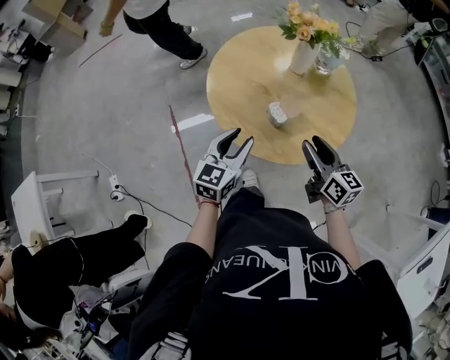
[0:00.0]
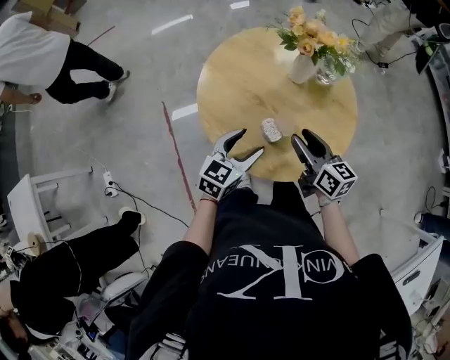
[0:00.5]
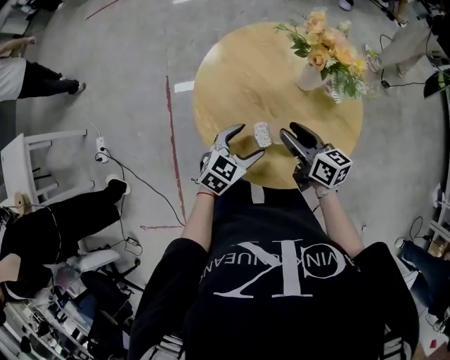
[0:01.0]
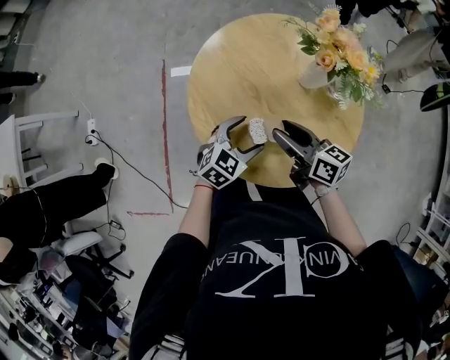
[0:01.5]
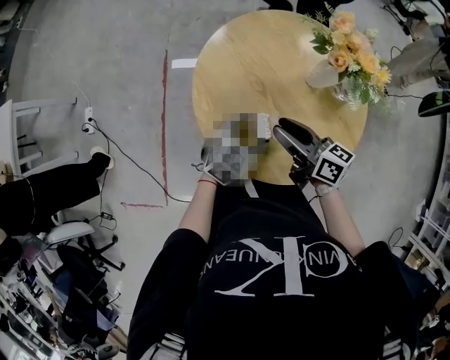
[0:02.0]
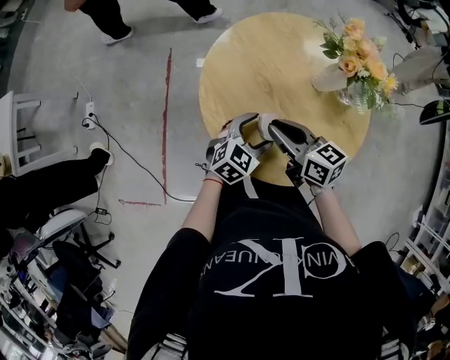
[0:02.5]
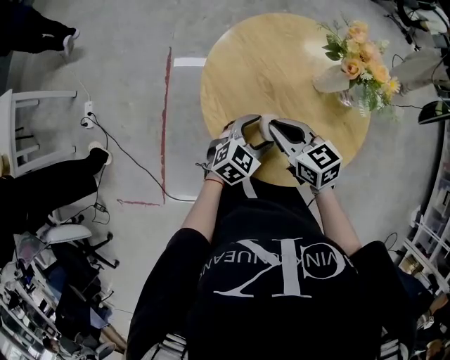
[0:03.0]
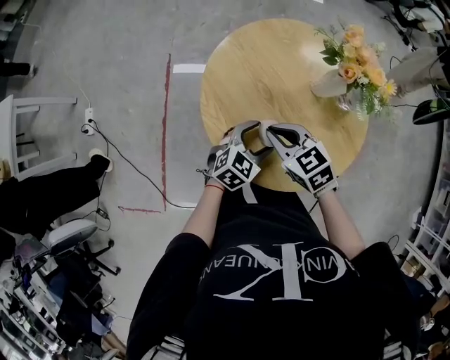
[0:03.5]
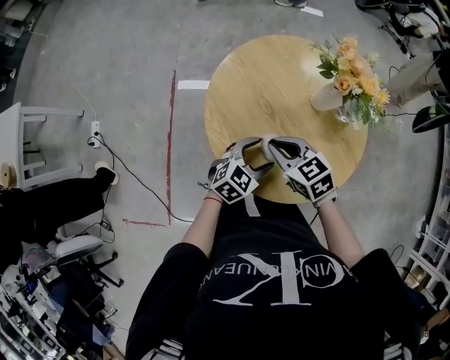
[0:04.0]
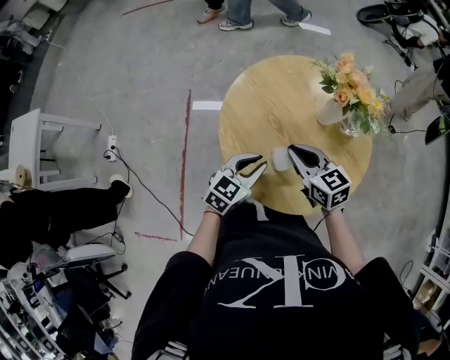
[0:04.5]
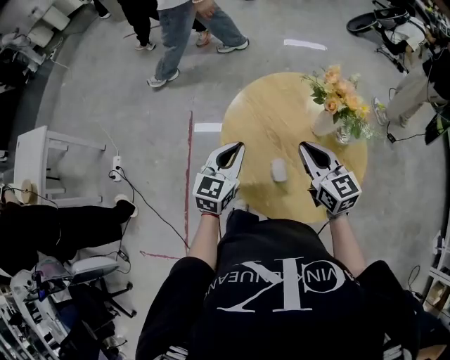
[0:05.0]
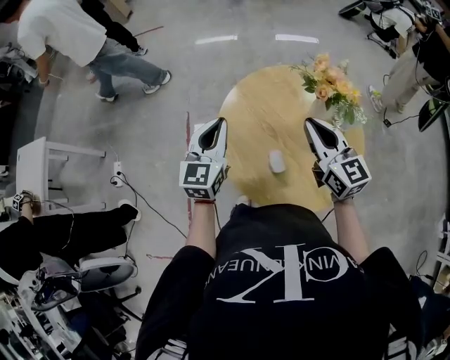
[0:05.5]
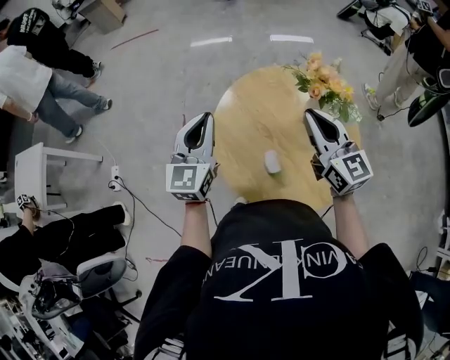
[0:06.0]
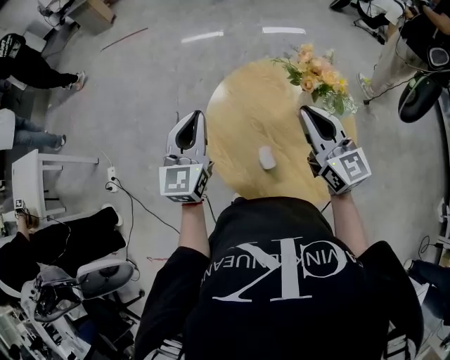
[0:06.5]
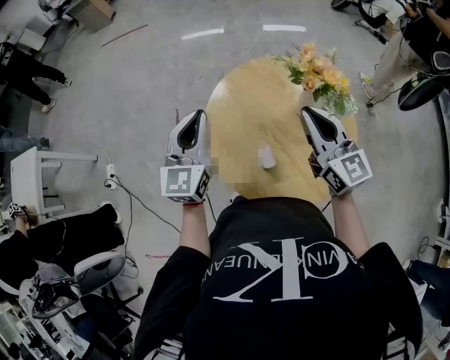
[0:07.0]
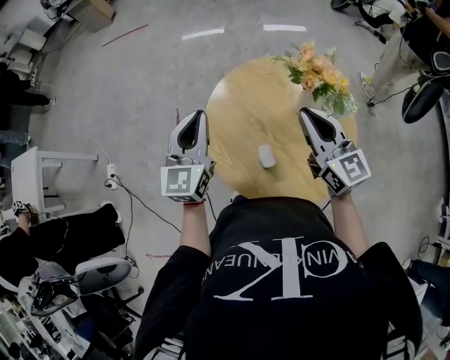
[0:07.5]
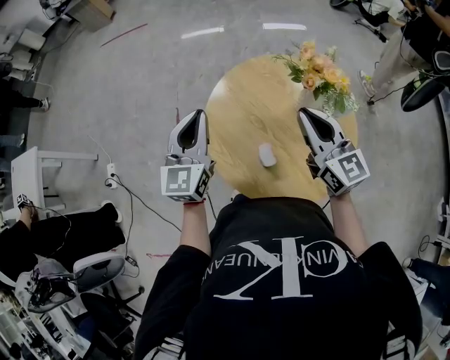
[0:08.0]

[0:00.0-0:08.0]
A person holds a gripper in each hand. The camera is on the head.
0:00.0 to 0:02.0: The right gripper heads forward, covering approximately 15 cm, and rotates approximately 40 degrees; the left gripper heads to the right, downward and forward, covering about 20 cm, and opens its fingers.
0:02.0 to 0:04.0: The right gripper heads to the left, covering approximately 5 cm, points its fingers about 30 degrees further downward, and closes.
0:04.0 to 0:06.0: The left gripper heads upward, to the left and forward, covering roughly 30 cm, angles its fingers upward, by some 30 degrees, and closes up; the right gripper travels upward and to the right by roughly 20 cm, and angles its fingers upward, by approximately 40 degrees.
0:06.0 to 0:08.0: The grippers make only small movements.

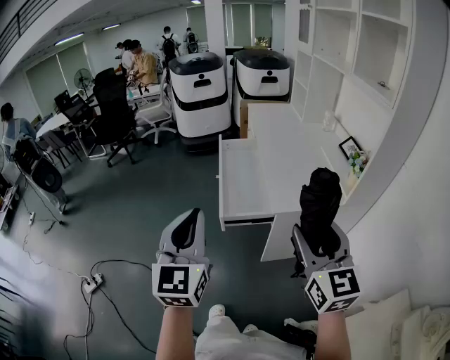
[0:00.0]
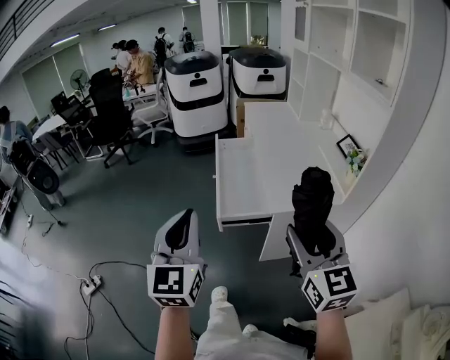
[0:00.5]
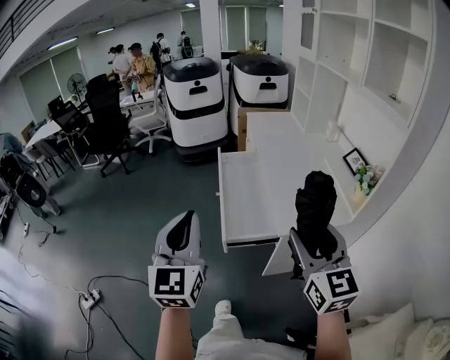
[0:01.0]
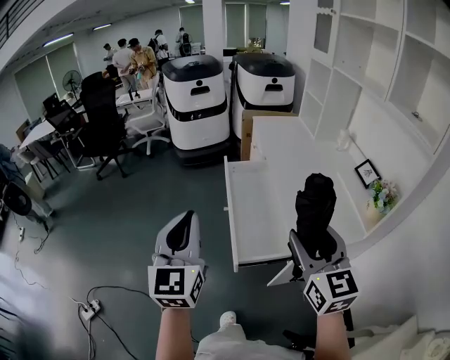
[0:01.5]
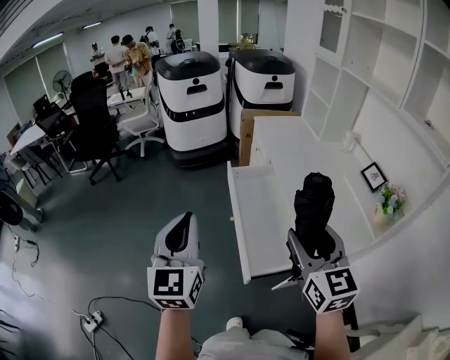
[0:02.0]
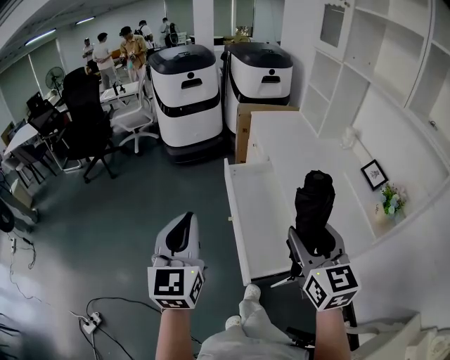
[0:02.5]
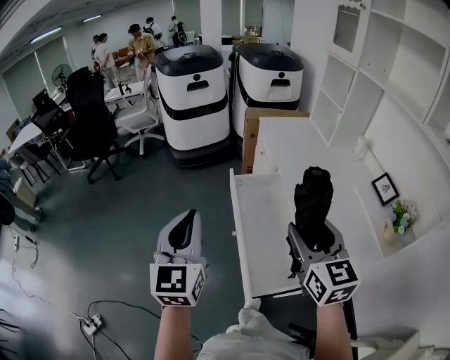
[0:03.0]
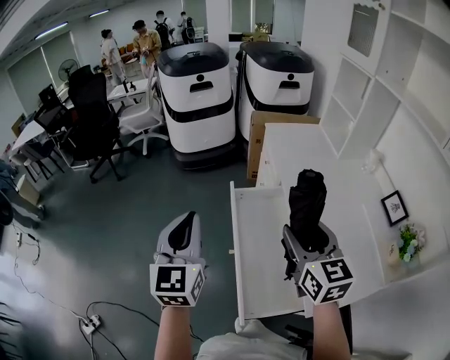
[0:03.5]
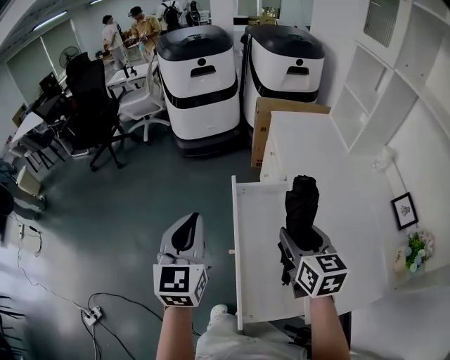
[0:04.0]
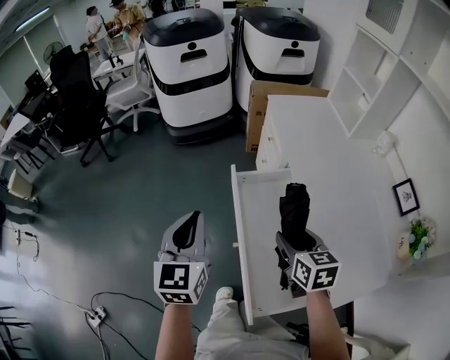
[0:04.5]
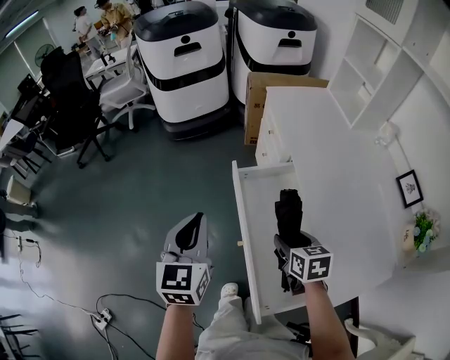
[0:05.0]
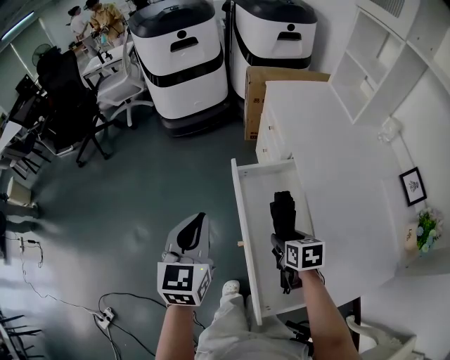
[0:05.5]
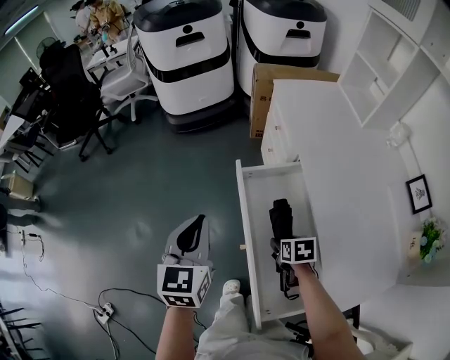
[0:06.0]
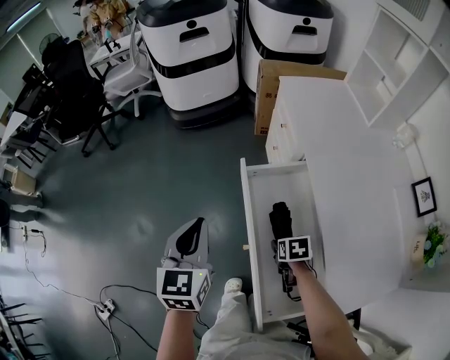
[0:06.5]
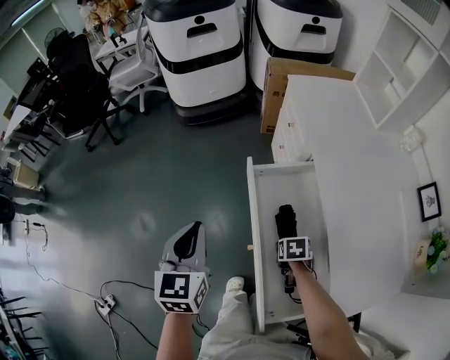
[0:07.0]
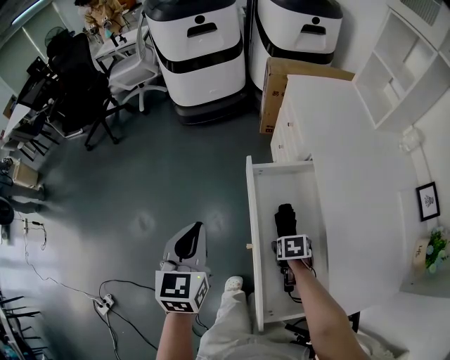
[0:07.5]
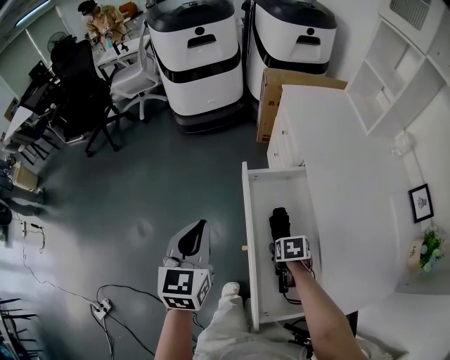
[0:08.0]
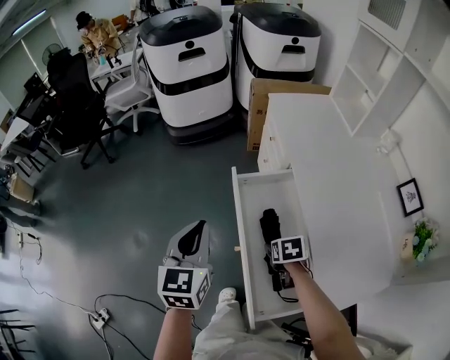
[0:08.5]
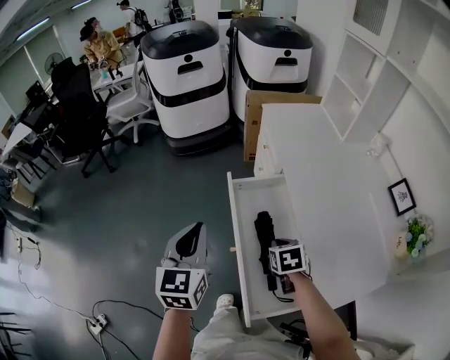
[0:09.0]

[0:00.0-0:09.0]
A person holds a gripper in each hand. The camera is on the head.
0:00.0 to 0:02.0: Both grippers travel together forward and to the left, some 30 cm.
0:02.0 to 0:04.5: Both grippers move forward and downward, approximately 30 cm. The right gripper turns by roughly 30 degrees.
0:04.5 to 0:07.0: The right gripper shifts some 25 cm downward, and points its fingers some 40 degrees further downward. The left gripper heads downward, covering about 5 cm.
0:07.0 to 0:09.0: The left gripper shifts by approximately 10 cm, while the right gripper is displaced upward by roughly 15 cm, changes its angle by roughly 20 degrees, and closes its fingers.

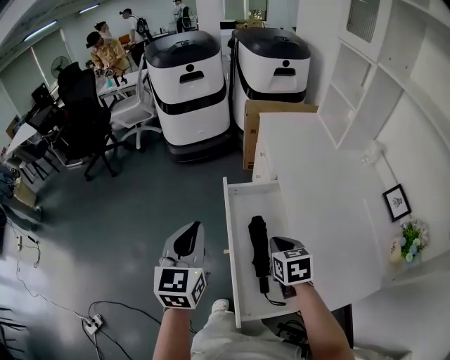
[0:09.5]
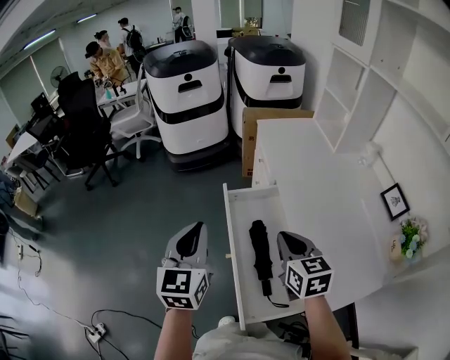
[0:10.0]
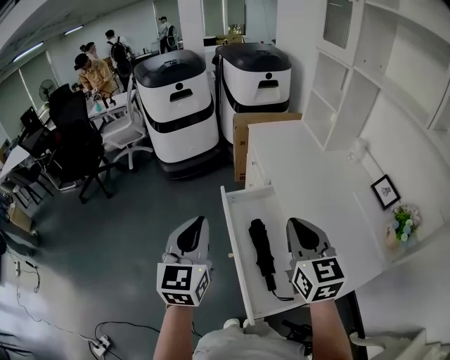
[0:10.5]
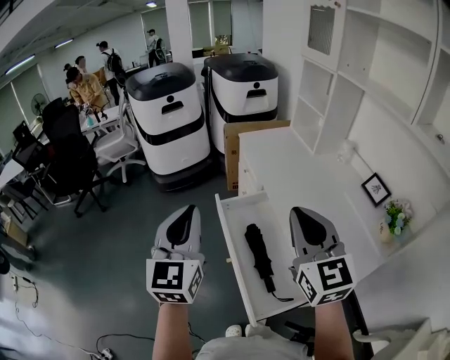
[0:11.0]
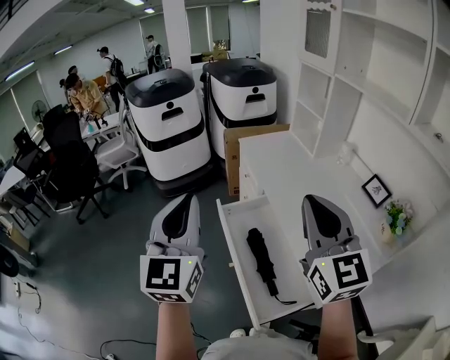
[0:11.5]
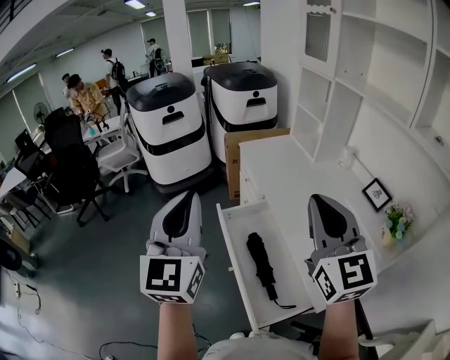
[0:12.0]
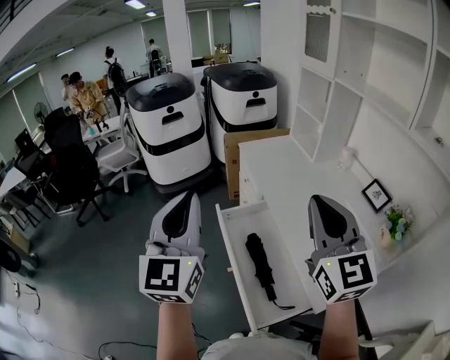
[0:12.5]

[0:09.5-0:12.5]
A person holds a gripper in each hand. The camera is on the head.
0:09.5 to 0:11.0: The right gripper is displaced upward by approximately 25 cm, and points its fingers roughly 40 degrees further upward. The left gripper shifts roughly 10 cm upward.
0:11.0 to 0:12.5: The two grippers go approximately 5 cm upward.

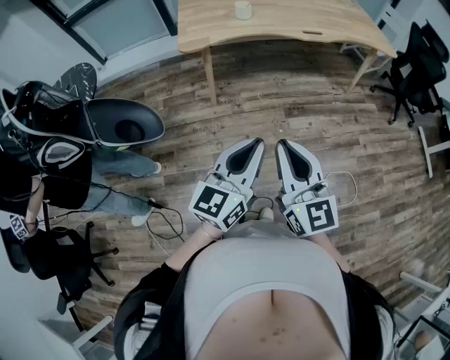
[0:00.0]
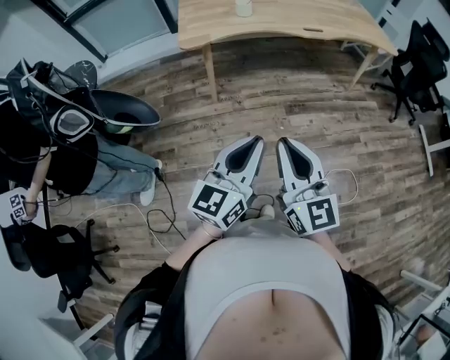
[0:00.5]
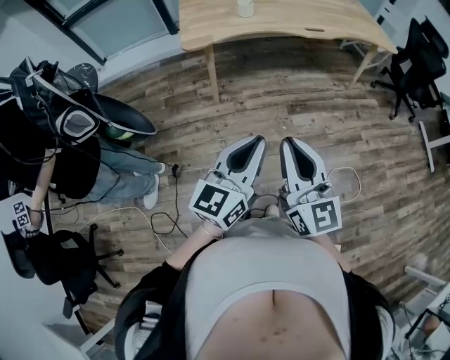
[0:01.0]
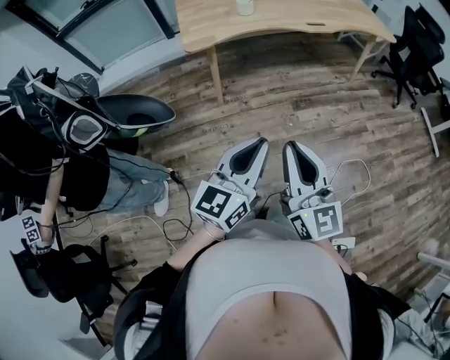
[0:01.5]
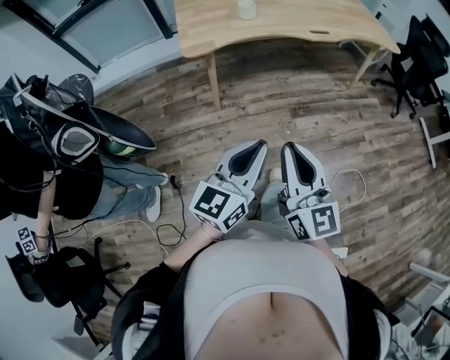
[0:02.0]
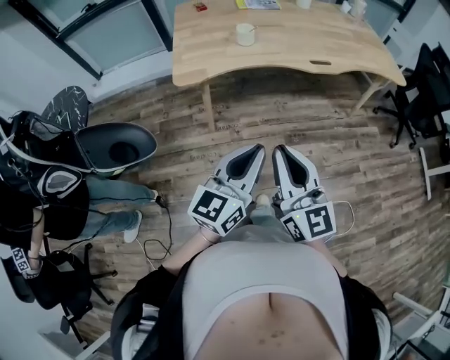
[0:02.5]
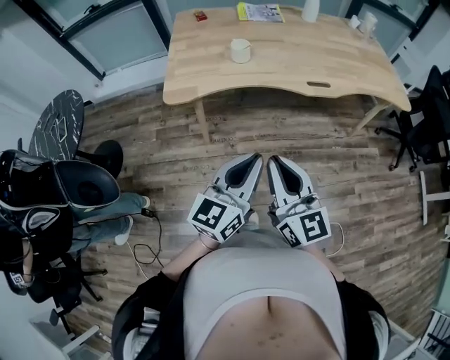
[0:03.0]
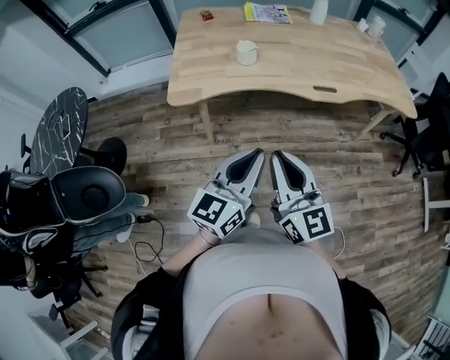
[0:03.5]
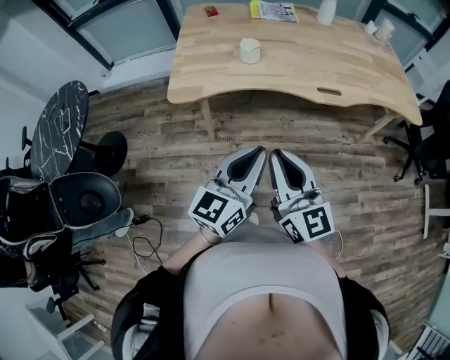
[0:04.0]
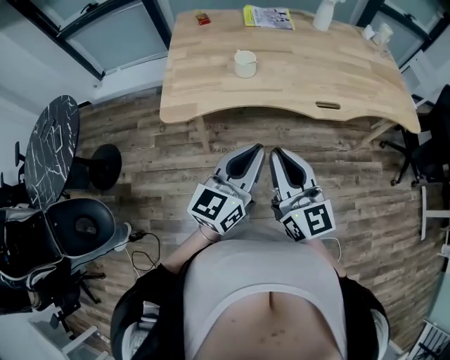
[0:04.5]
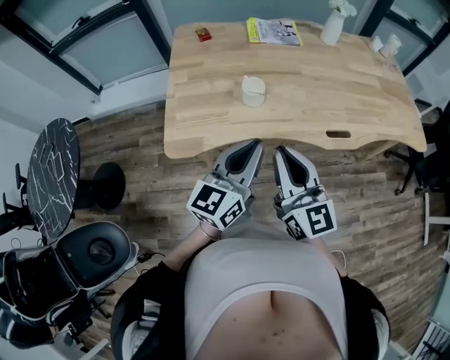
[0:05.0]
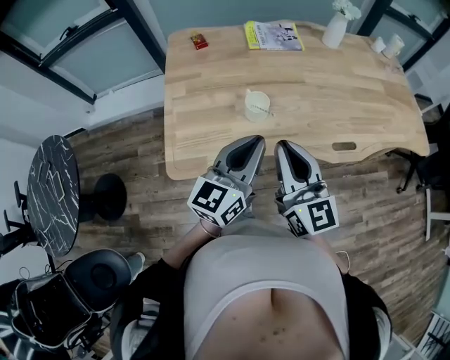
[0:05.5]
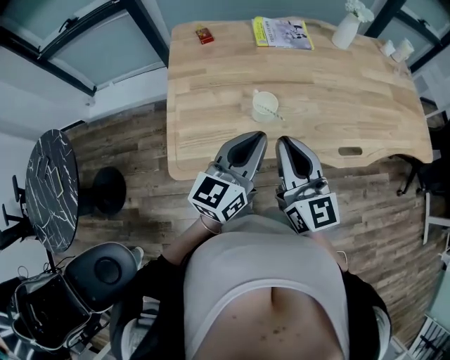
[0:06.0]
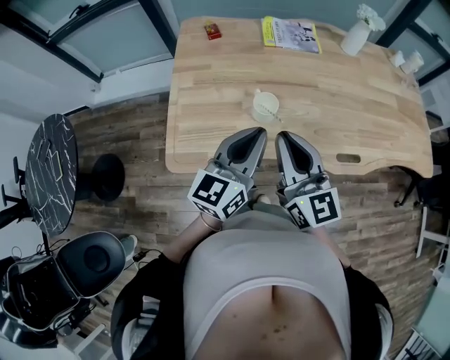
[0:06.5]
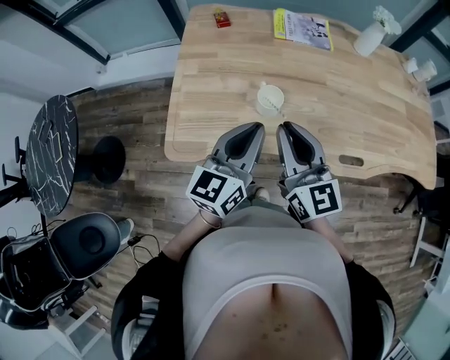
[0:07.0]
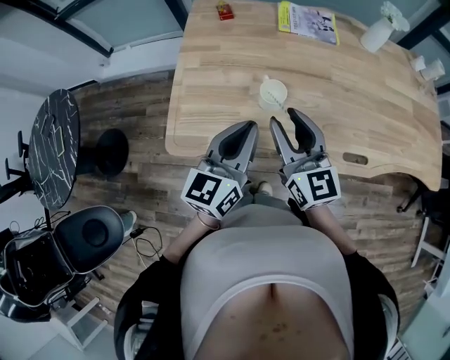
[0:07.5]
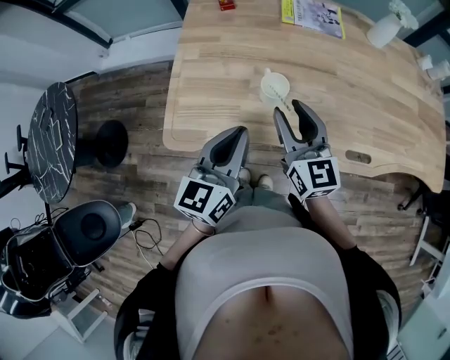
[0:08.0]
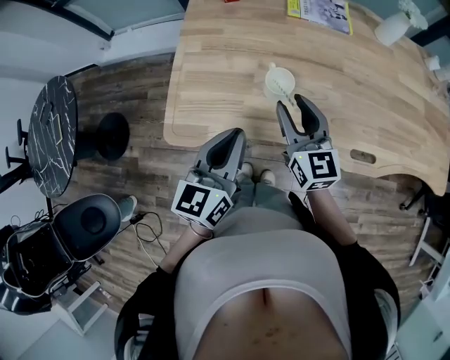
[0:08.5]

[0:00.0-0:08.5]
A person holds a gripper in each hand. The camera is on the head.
0:00.0 to 0:02.0: Both grippers move to the left, about 5 cm.
0:02.0 to 0:04.0: The right gripper heads forward, covering approximately 30 cm; the left gripper goes some 30 cm forward and to the right.
0:04.0 to 0:06.5: Both grippers travel together forward, roughly 35 cm.
0:06.5 to 0:08.5: The left gripper is displaced downward by about 5 cm. The right gripper shifts some 15 cm downward and forward, and opens its fingers.
